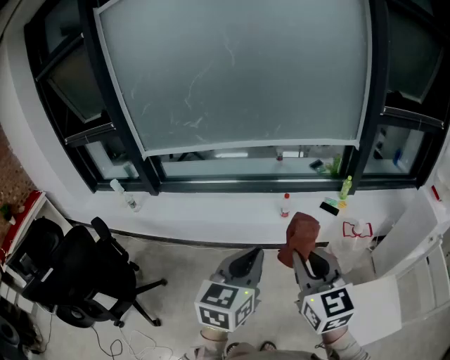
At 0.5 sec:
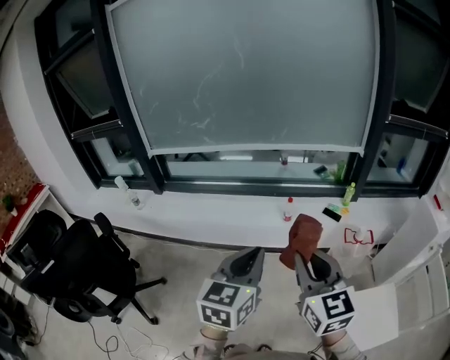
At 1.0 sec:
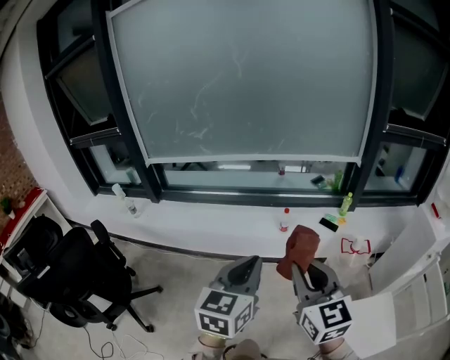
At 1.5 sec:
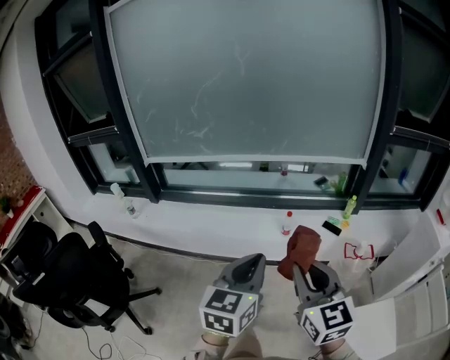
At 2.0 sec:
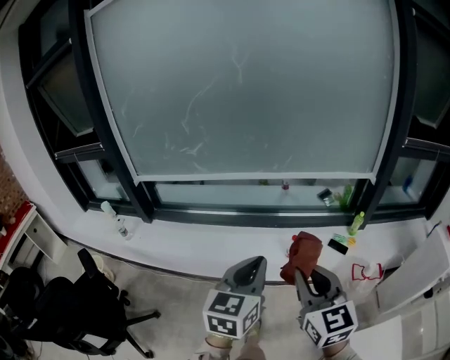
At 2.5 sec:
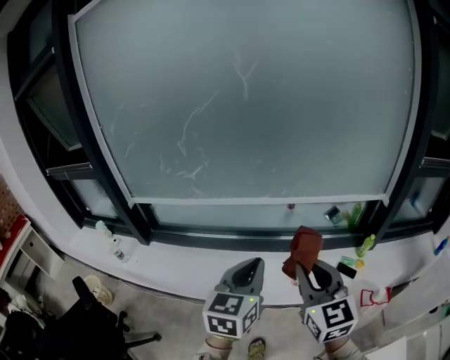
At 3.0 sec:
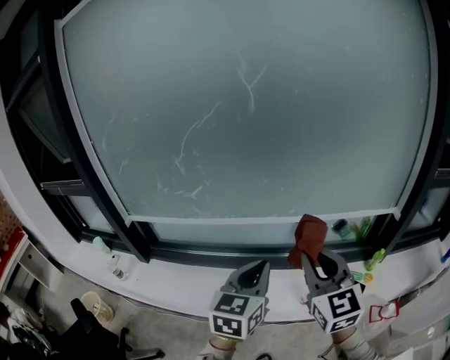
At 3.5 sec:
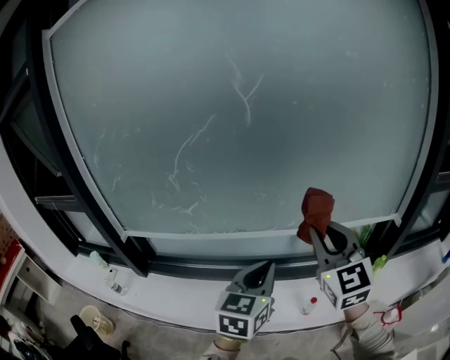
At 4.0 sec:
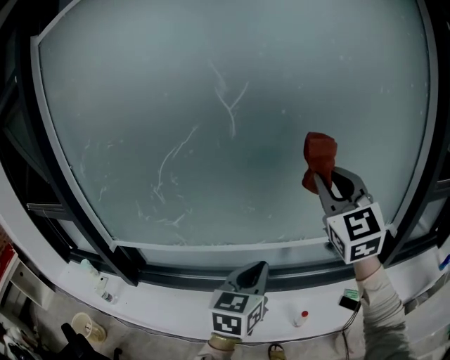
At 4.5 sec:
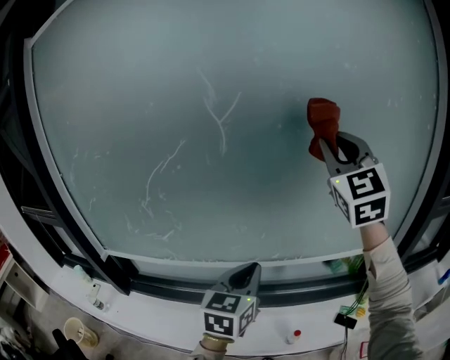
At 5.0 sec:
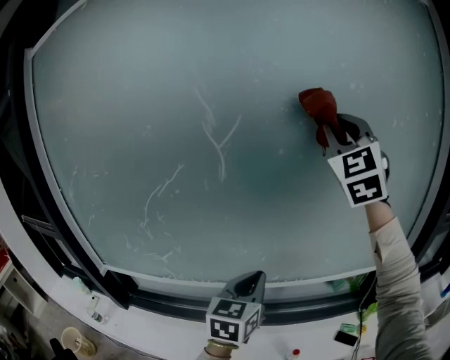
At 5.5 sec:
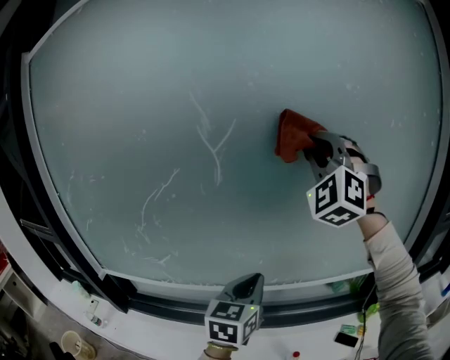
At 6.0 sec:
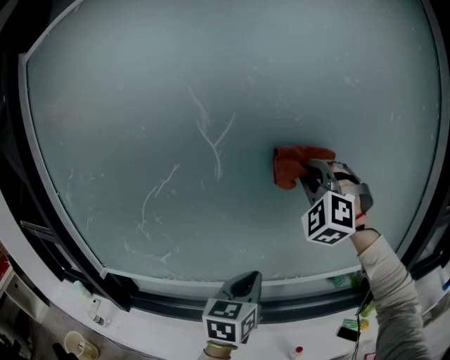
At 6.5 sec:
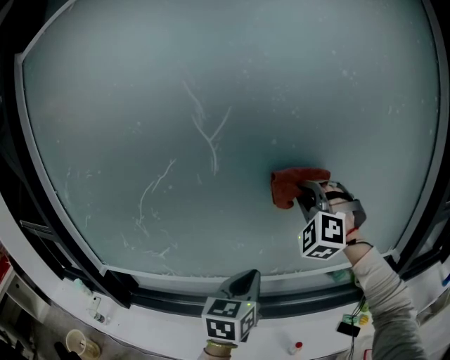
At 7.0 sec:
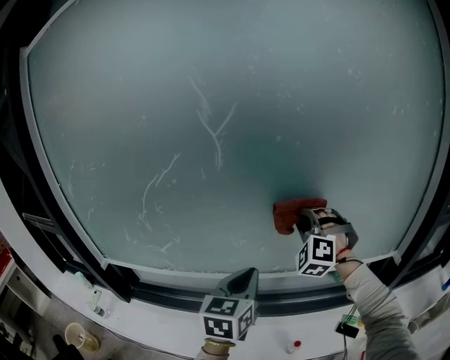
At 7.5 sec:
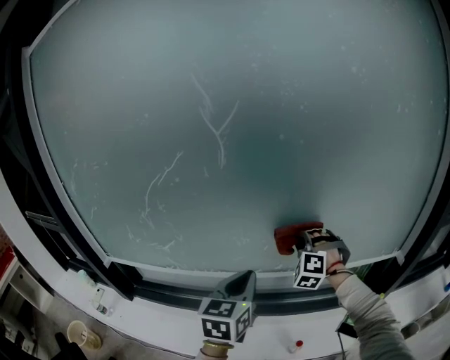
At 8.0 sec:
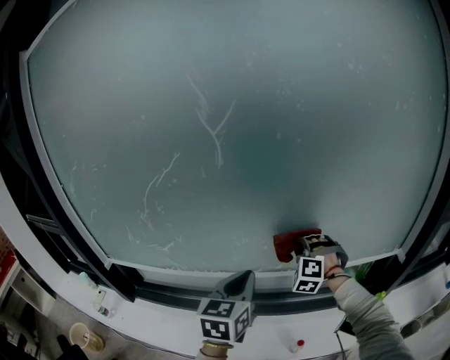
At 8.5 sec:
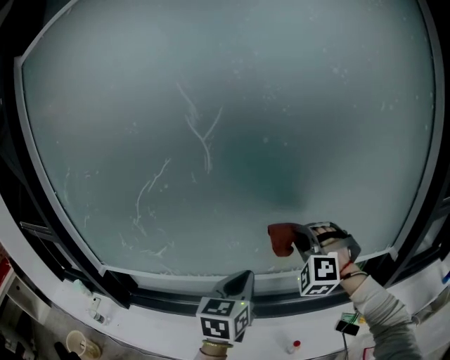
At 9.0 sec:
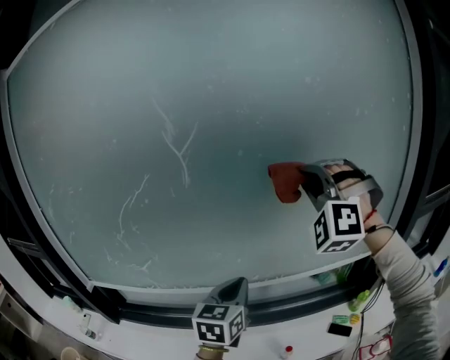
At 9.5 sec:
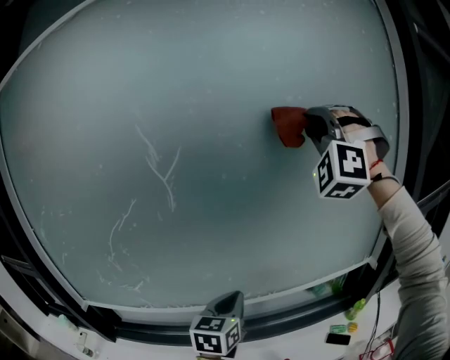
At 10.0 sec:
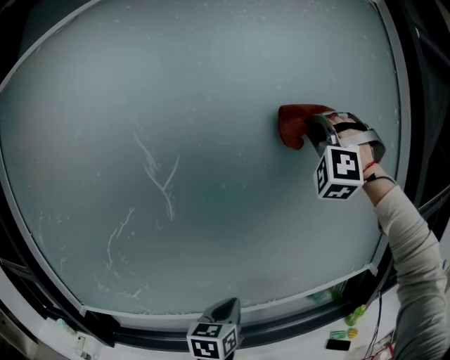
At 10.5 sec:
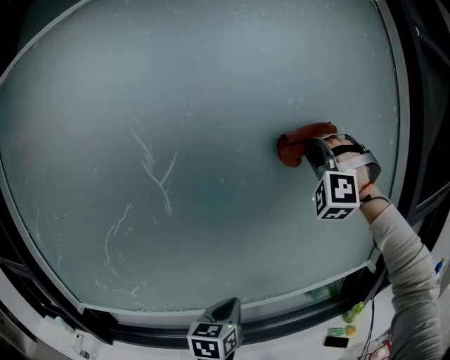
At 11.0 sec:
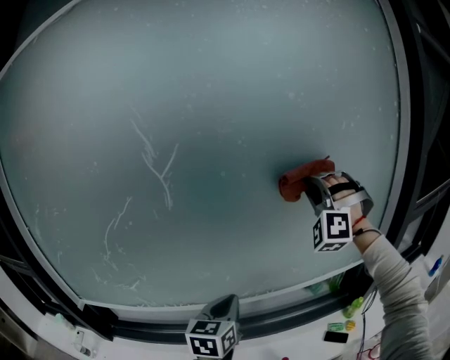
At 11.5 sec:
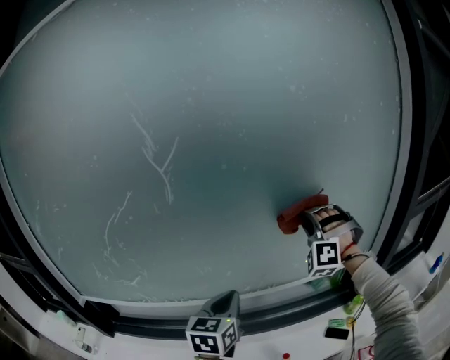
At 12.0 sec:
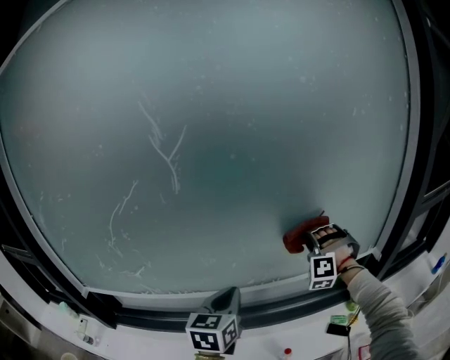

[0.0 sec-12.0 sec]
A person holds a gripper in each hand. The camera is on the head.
0.0 sec to 2.0 sec: The grippers both shift forward by approximately 20 cm.
2.0 sec to 4.0 sec: The left gripper heads forward, covering about 40 cm. The right gripper moves forward and upward, approximately 60 cm, and turns by some 30 degrees.
4.0 sec to 6.0 sec: Both grippers travel together forward, roughly 15 cm. The right gripper rotates around the line of its fingers by about 50 degrees, counterclockwise from behind.
6.0 sec to 8.0 sec: The right gripper goes roughly 30 cm downward, and angles its fingers downward, by approximately 30 degrees.
8.0 sec to 10.0 sec: The left gripper goes some 5 cm to the right. Meanwhile the right gripper travels upward by some 50 cm, and tips its fingers upward by roughly 40 degrees.
10.0 sec to 12.0 sec: The right gripper travels downward by some 40 cm, and angles its fingers downward, by some 30 degrees.

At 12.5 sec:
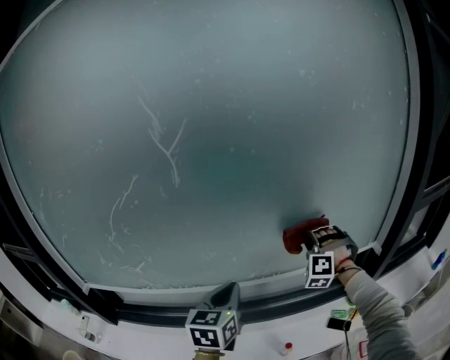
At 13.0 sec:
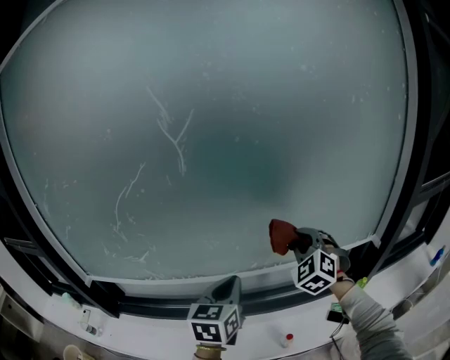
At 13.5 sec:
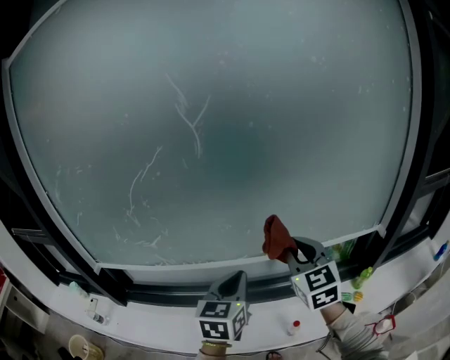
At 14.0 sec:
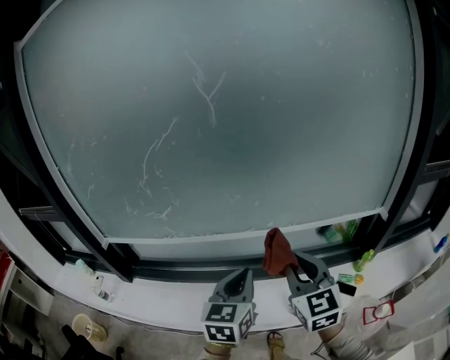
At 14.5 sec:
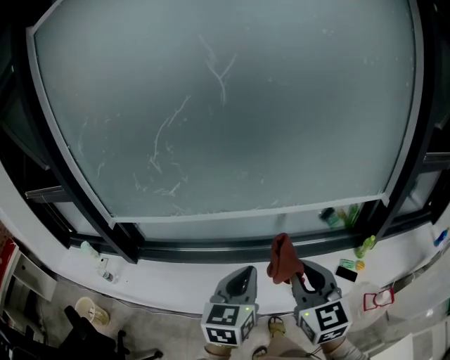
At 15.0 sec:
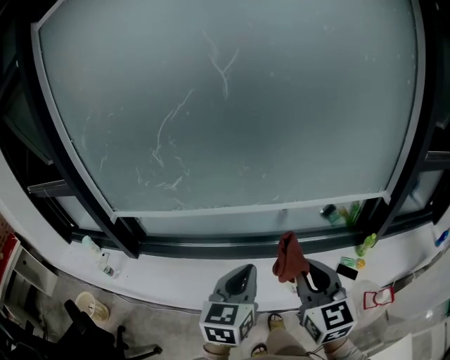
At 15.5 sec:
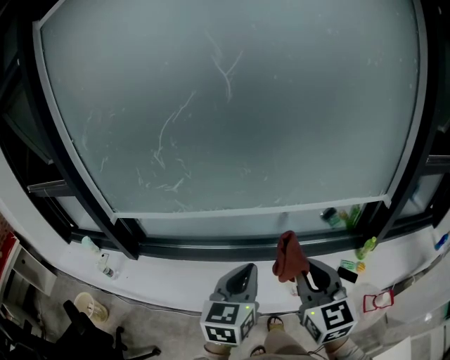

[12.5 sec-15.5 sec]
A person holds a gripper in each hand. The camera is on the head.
12.5 sec to 14.0 sec: The right gripper heads backward and to the left, covering approximately 35 cm, and twists approximately 80 degrees clockwise, seen from behind. The left gripper is displaced backward by approximately 15 cm.
14.0 sec to 15.5 sec: Both grippers move backward, some 10 cm.

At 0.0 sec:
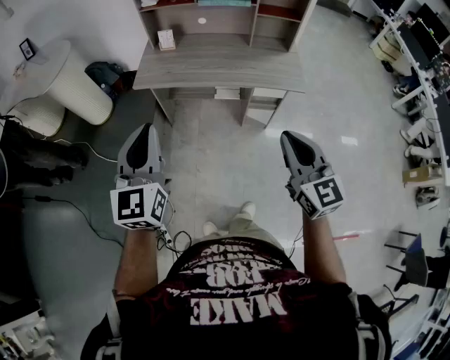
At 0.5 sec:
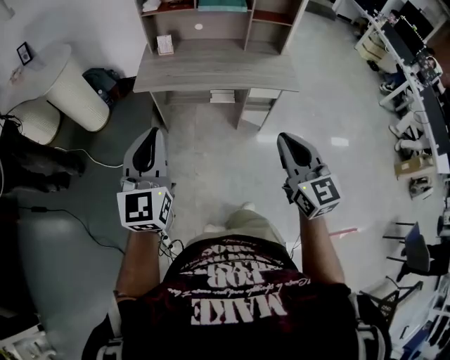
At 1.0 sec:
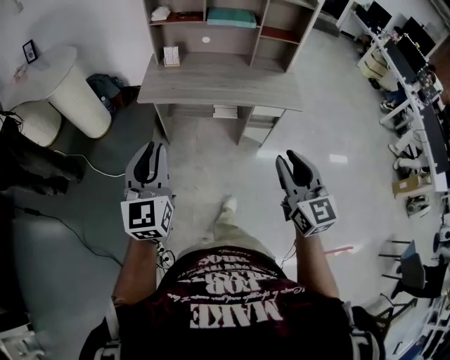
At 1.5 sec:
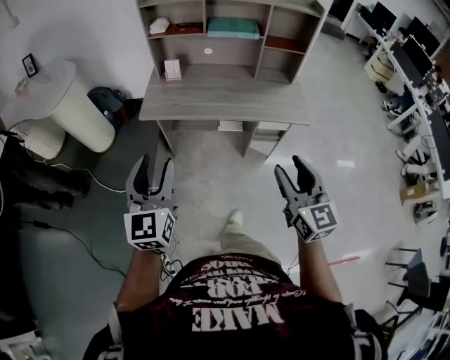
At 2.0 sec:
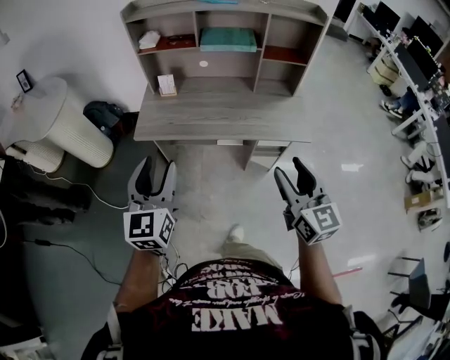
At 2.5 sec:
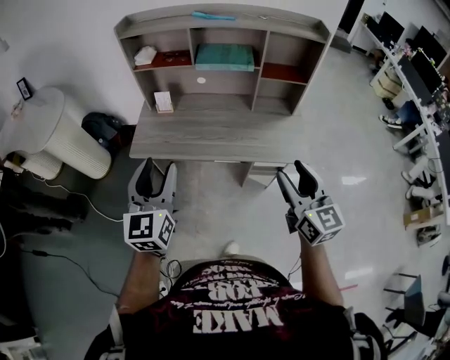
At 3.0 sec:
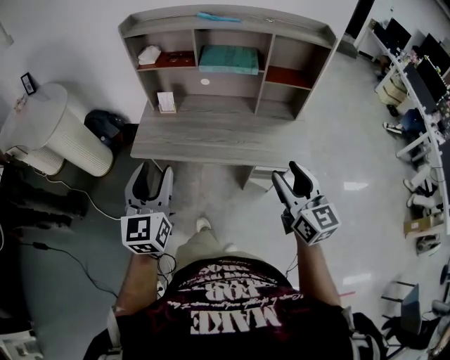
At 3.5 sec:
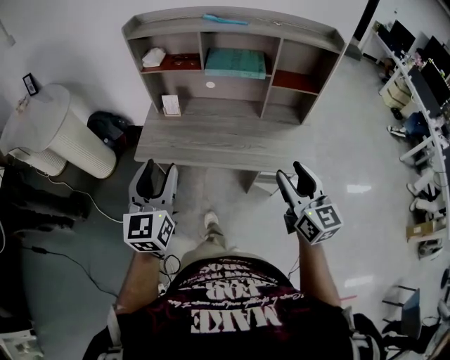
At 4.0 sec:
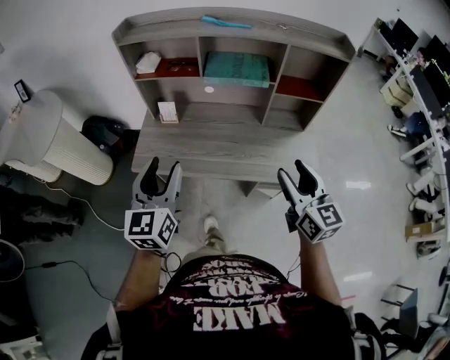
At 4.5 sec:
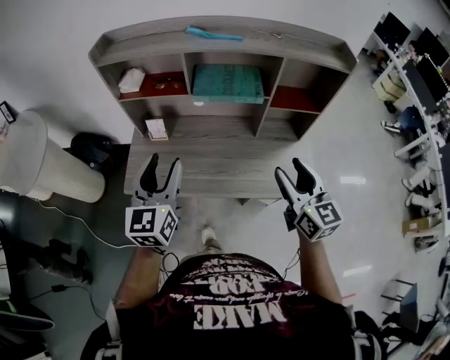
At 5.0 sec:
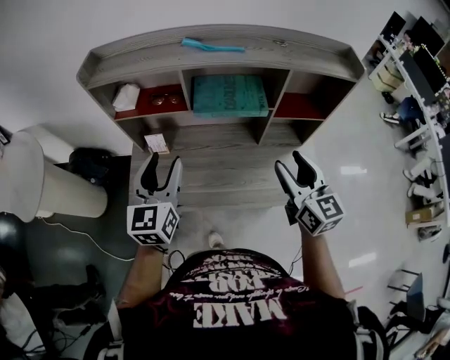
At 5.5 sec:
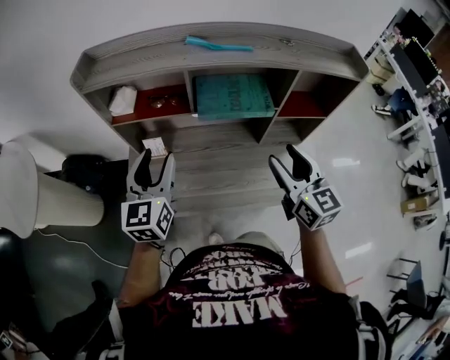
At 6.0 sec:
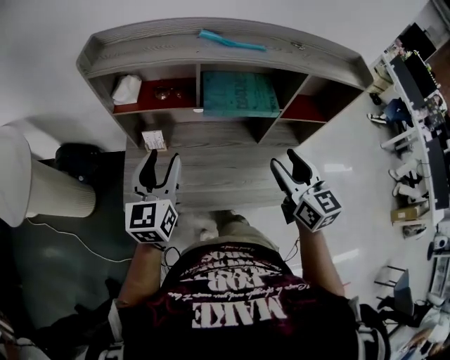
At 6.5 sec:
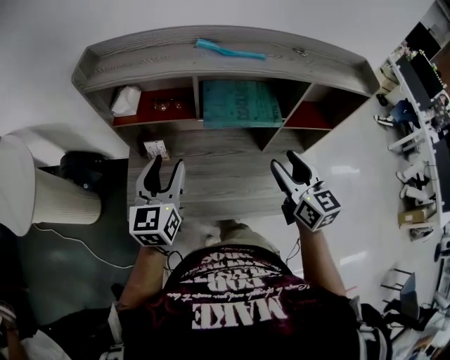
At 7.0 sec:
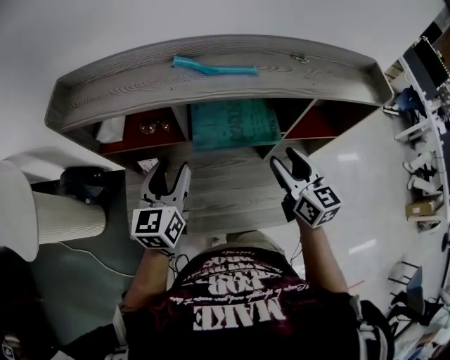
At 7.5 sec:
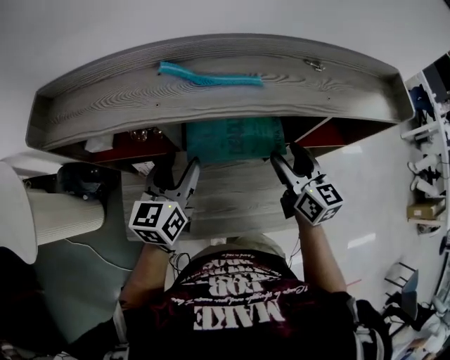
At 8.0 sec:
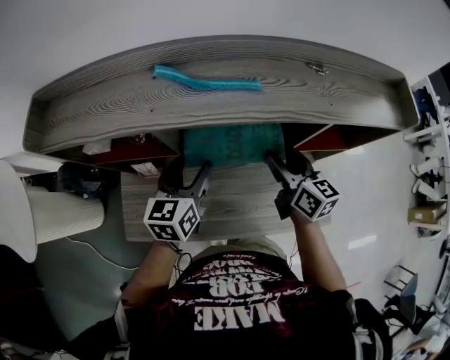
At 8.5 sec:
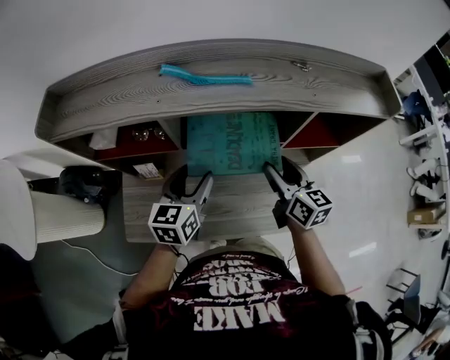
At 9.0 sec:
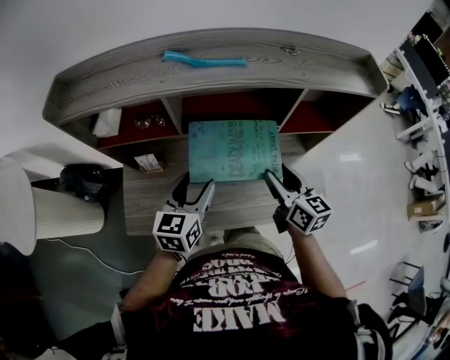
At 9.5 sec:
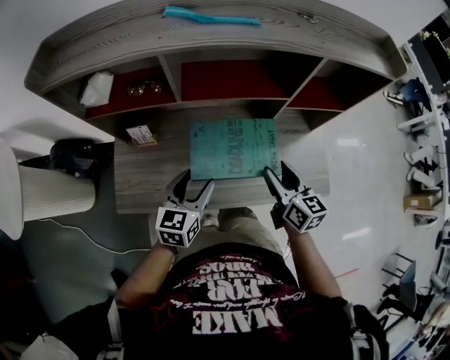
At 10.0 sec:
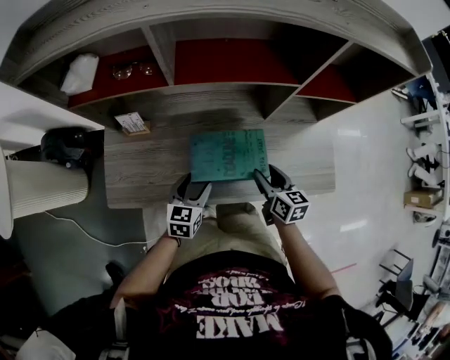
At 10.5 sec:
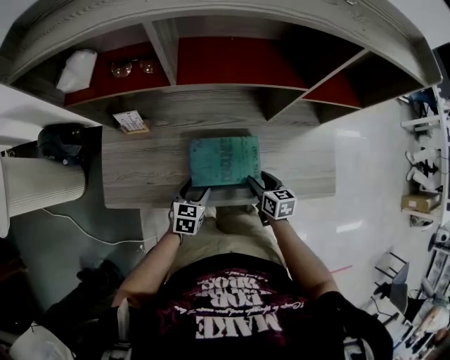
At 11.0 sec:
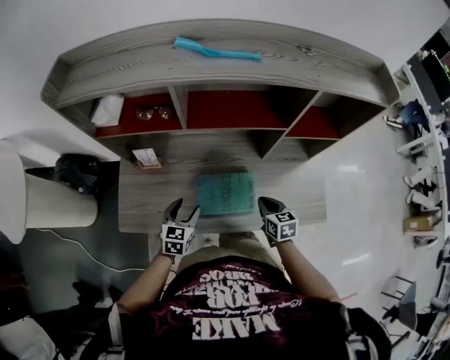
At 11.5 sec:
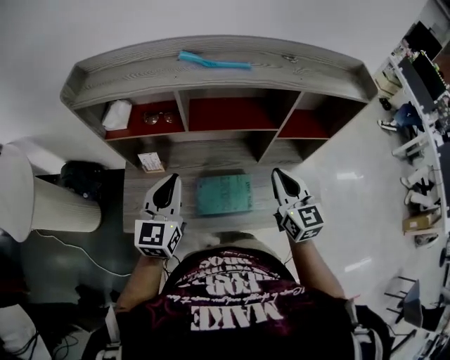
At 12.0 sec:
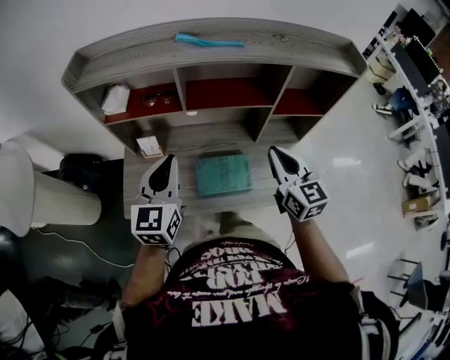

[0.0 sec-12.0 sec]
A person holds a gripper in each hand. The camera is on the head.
0.0 sec to 2.0 sec: Both grippers move forward, approximately 15 cm. The left gripper opens up. Meanwhile the right gripper opens its fingers.
2.0 sec to 4.0 sec: The grippers both shift forward by approximately 20 cm.
4.0 sec to 6.0 sec: Both grippers move forward, some 20 cm.
6.0 sec to 8.0 sec: The left gripper travels forward, to the right and downward by about 25 cm. The right gripper is displaced forward and downward by some 25 cm, and changes its angle by about 20 degrees.
8.0 sec to 10.0 sec: Both grippers travel together downward and backward, some 30 cm.
10.0 sec to 12.0 sec: The two grippers go approximately 30 cm upward. The left gripper turns by some 30 degrees, and closes its fingers. The right gripper swivels some 30 degrees, and closes its fingers.
